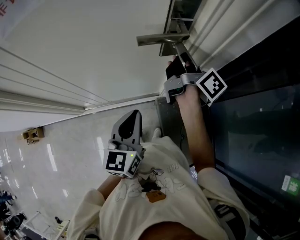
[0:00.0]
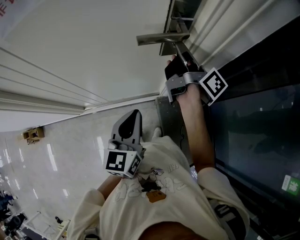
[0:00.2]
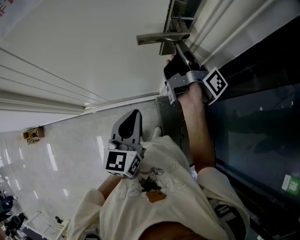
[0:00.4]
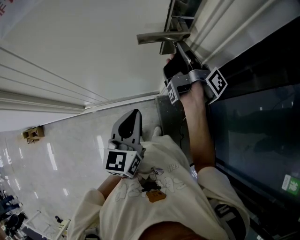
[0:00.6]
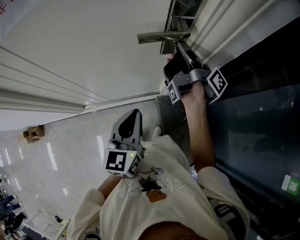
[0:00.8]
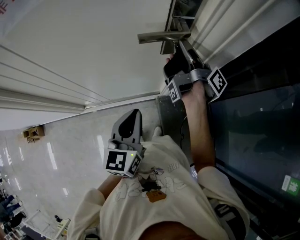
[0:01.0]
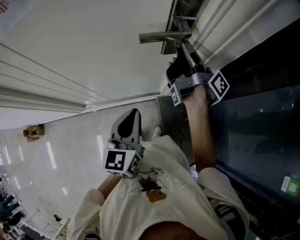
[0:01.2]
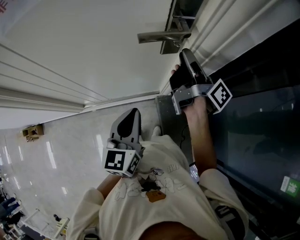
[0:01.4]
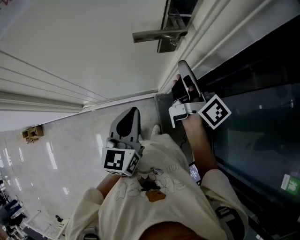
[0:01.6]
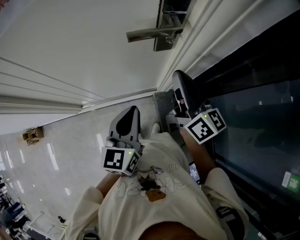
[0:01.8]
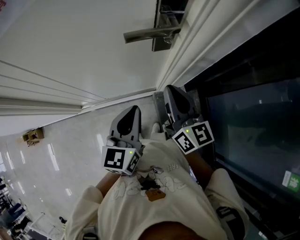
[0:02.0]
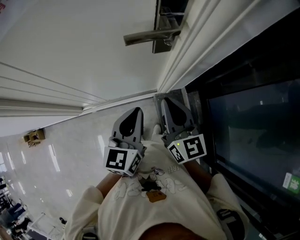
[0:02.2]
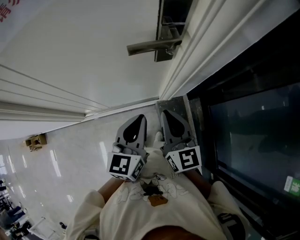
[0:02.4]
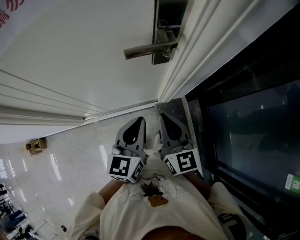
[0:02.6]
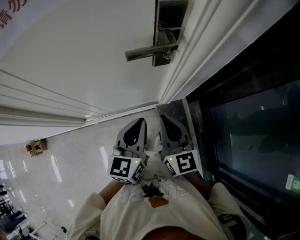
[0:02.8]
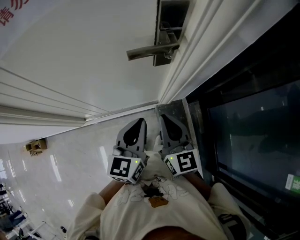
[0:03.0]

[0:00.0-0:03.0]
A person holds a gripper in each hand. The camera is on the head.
0:00.0 to 0:01.6: The right gripper heads backward, covering approximately 5 cm, and opens, then closes once more.
0:01.6 to 0:03.0: The right gripper goes some 15 cm backward and downward, and rolls counterclockwise, seen from behind, by approximately 50 degrees.

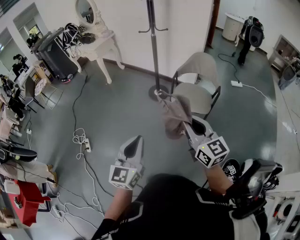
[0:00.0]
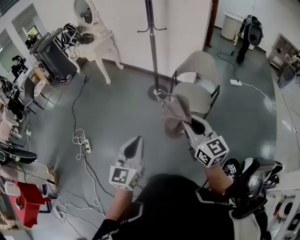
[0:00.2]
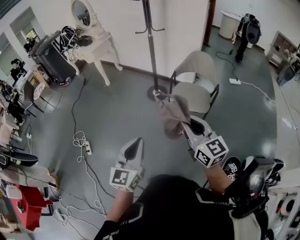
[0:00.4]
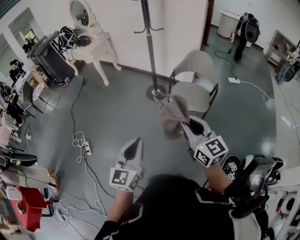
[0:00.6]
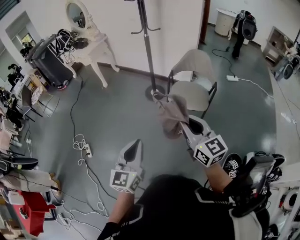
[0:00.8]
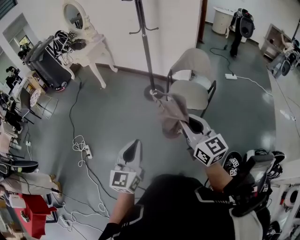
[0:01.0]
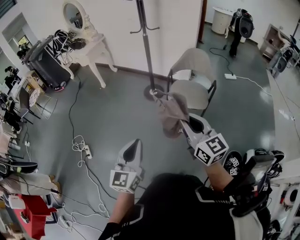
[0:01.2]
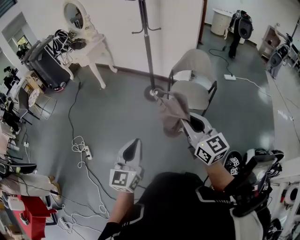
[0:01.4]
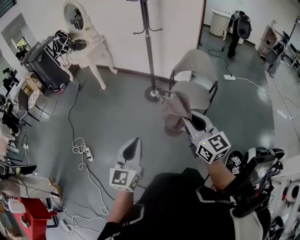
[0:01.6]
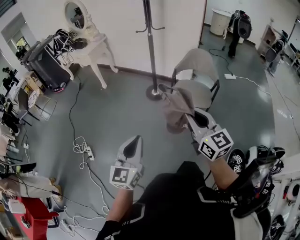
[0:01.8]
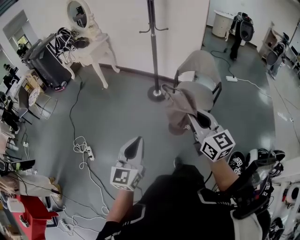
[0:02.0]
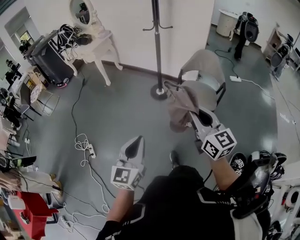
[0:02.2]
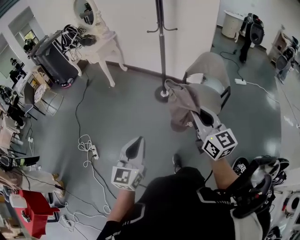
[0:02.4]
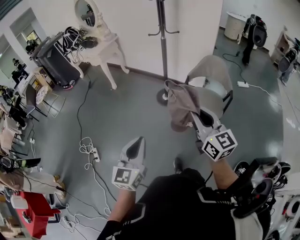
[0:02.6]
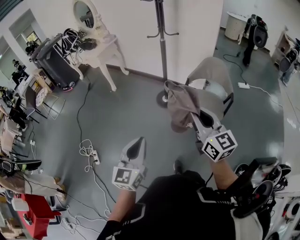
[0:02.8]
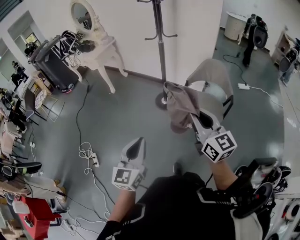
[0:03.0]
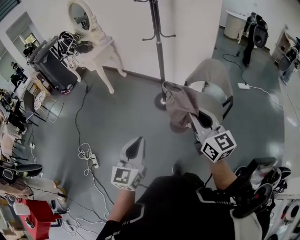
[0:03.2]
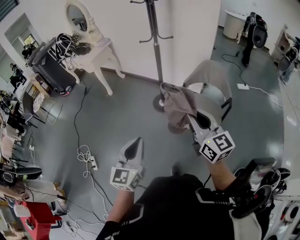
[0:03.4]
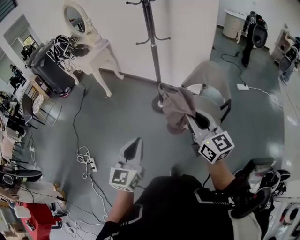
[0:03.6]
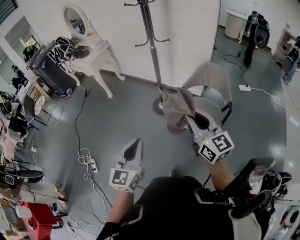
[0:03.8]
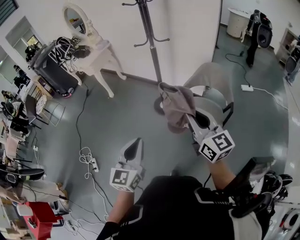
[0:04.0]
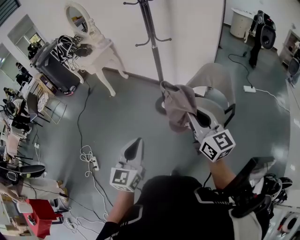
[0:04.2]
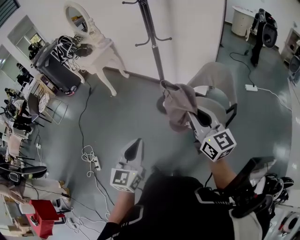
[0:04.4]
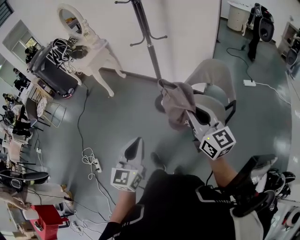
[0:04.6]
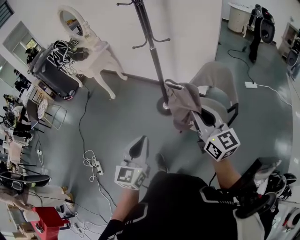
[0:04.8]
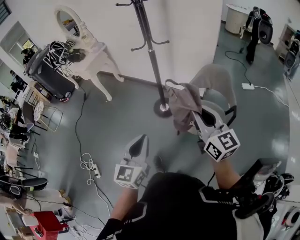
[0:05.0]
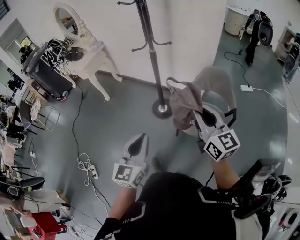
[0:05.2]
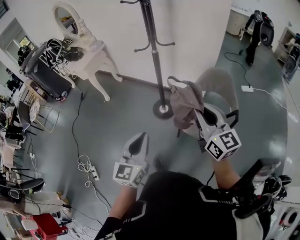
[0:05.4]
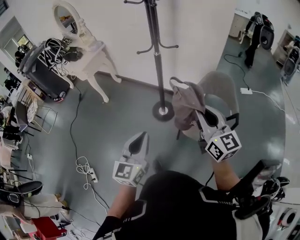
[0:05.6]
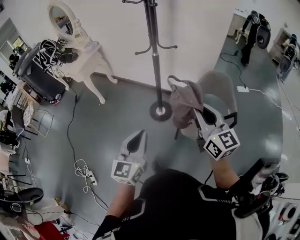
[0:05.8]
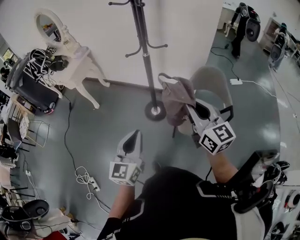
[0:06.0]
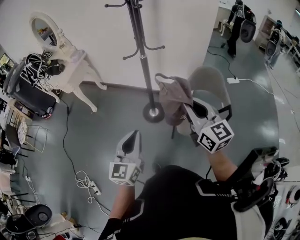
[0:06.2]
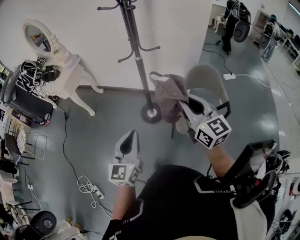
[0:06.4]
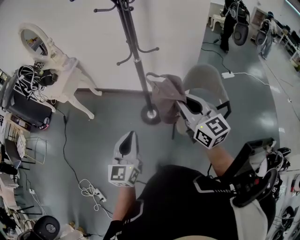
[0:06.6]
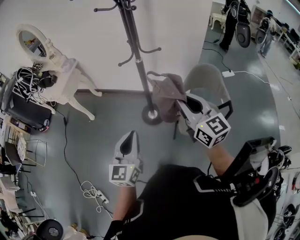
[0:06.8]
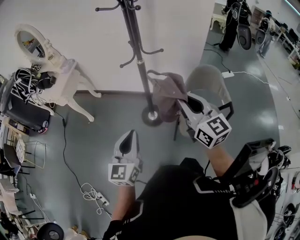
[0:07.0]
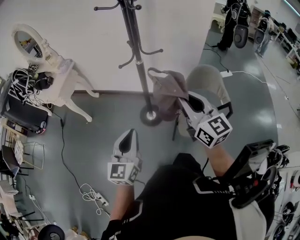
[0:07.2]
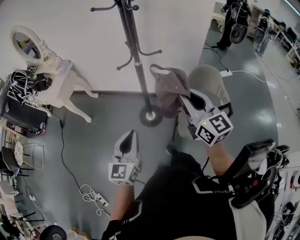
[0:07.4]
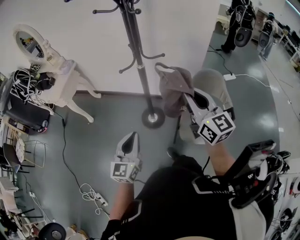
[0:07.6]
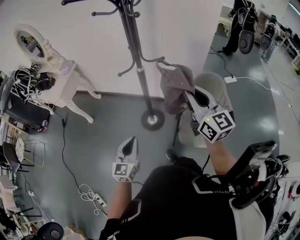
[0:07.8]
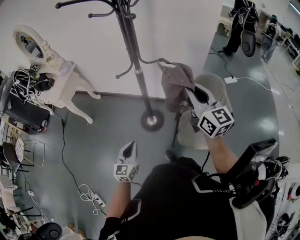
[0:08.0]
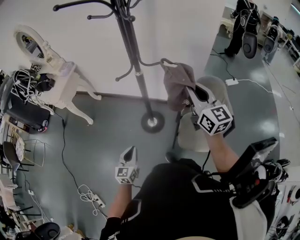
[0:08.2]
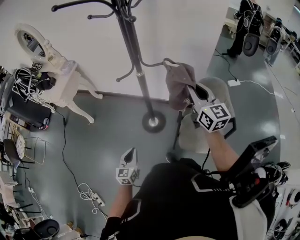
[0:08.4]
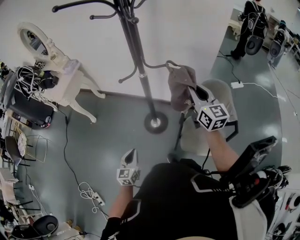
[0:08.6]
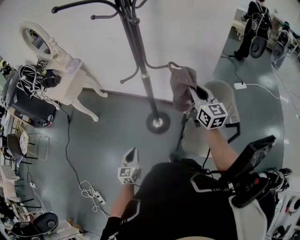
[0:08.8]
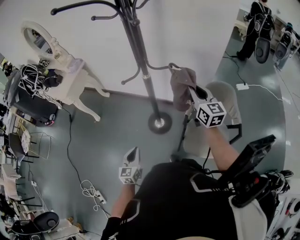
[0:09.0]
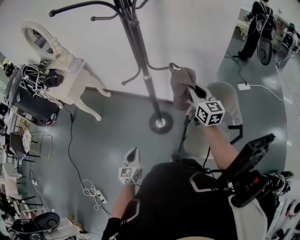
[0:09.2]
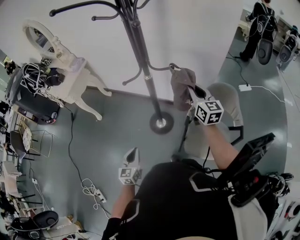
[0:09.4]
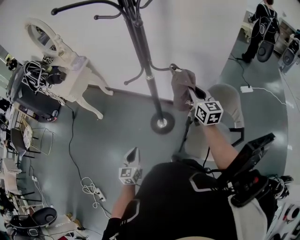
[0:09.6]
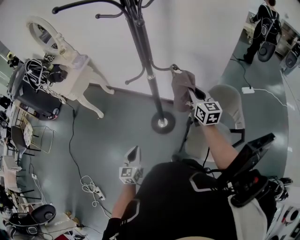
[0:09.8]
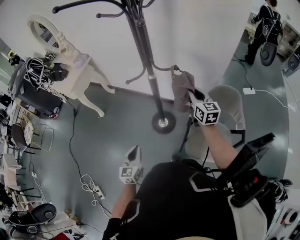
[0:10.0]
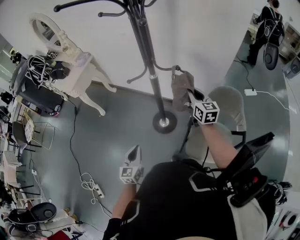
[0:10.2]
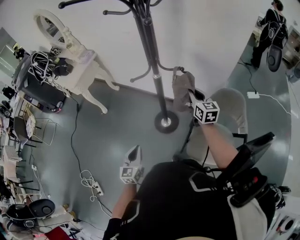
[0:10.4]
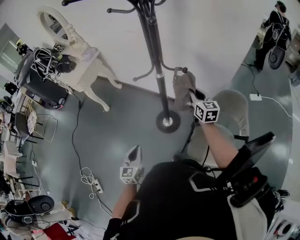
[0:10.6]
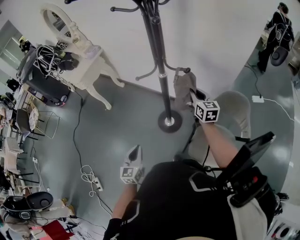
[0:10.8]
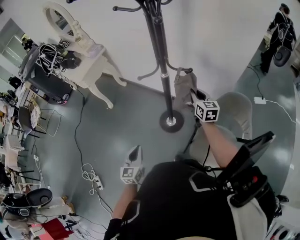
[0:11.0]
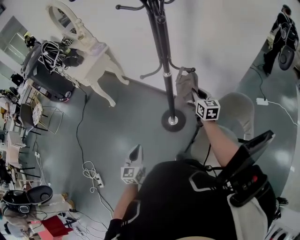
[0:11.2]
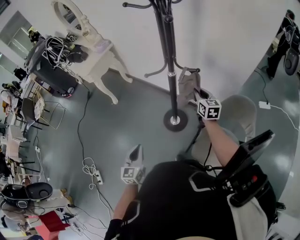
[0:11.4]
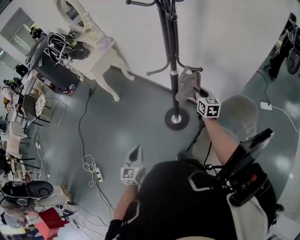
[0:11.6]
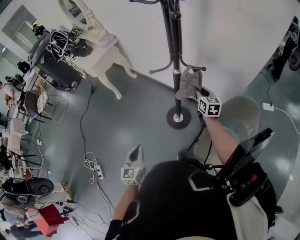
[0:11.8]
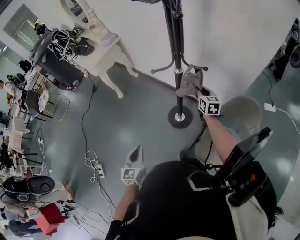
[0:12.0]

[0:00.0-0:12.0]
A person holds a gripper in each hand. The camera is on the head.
0:00.0 to 0:01.6: Both grippers move to the left, roughly 5 cm.
0:01.6 to 0:03.0: The grippers both shift forward by approximately 15 cm.
0:03.0 to 0:04.4: Both grippers travel together forward and to the right, approximately 15 cm.
0:04.4 to 0:06.0: The left gripper moves forward, roughly 20 cm, while the right gripper travels forward and to the left by some 15 cm.
0:06.0 to 0:07.6: Both grippers travel together forward, approximately 15 cm.
0:07.6 to 0:09.0: The left gripper heads downward, covering approximately 20 cm; the right gripper goes some 20 cm forward and downward.
0:09.0 to 0:10.4: The right gripper moves downward and forward, some 10 cm.
0:10.4 to 0:12.0: The right gripper moves downward and forward, approximately 10 cm. Meanwhile the left gripper changes place by about 5 cm.

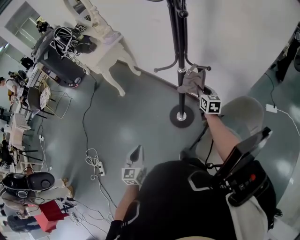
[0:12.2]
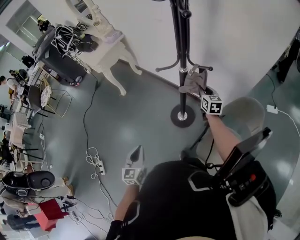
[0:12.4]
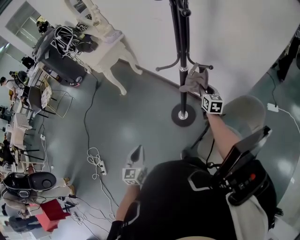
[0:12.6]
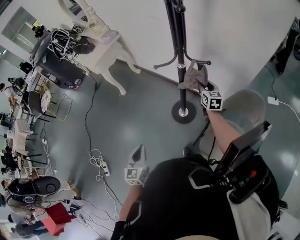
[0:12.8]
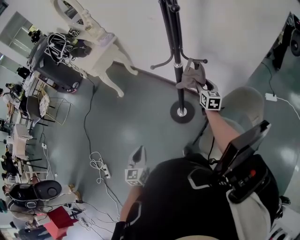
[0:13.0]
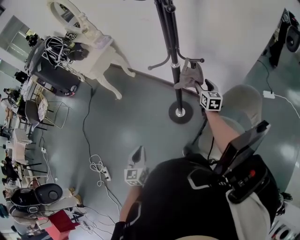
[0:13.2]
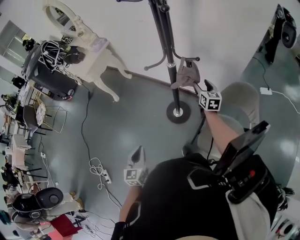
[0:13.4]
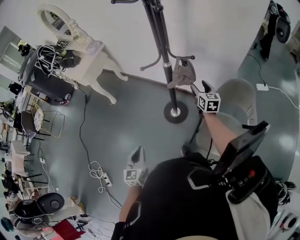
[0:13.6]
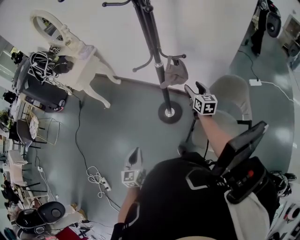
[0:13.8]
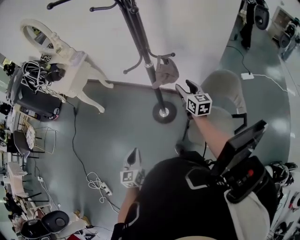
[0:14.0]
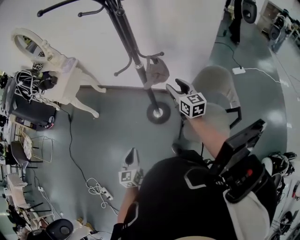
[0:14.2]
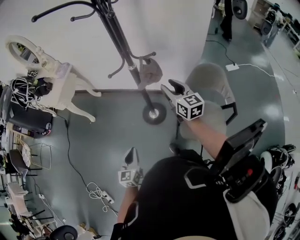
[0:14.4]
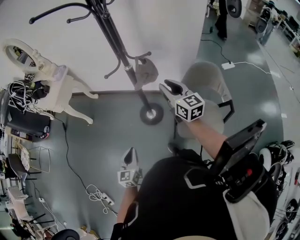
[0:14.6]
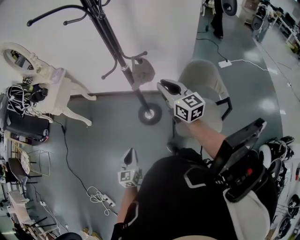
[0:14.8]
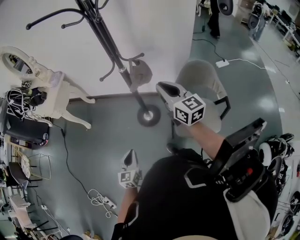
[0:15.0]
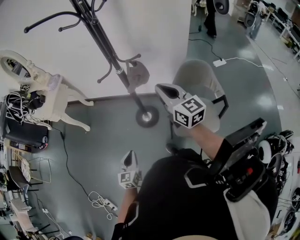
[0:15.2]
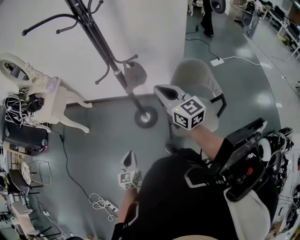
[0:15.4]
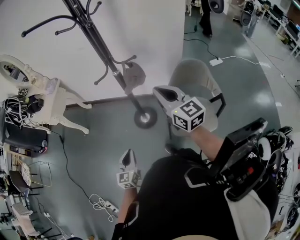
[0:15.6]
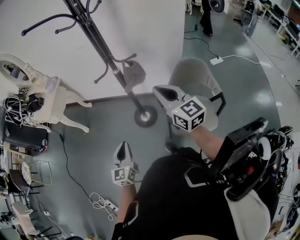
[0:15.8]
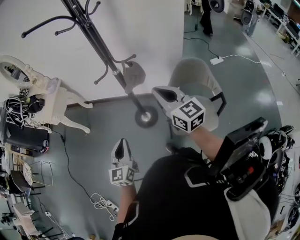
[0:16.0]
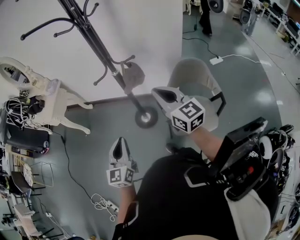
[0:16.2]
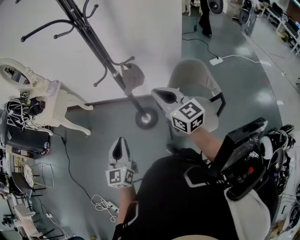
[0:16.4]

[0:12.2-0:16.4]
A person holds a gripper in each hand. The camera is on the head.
0:12.2 to 0:13.6: The right gripper goes some 5 cm backward, and opens up.
0:13.6 to 0:15.0: The right gripper is displaced upward and backward by roughly 25 cm, and closes its fingers; the left gripper changes place by some 5 cm.
0:15.0 to 0:16.4: The left gripper heads upward, covering some 20 cm, while the right gripper goes approximately 5 cm backward.

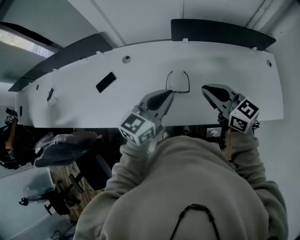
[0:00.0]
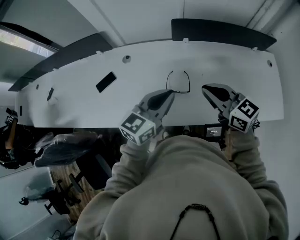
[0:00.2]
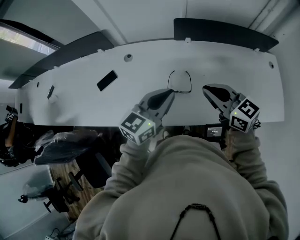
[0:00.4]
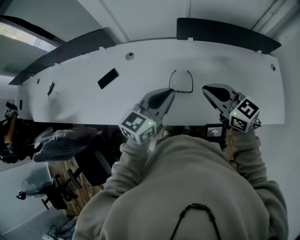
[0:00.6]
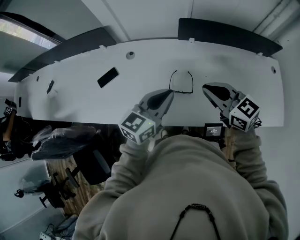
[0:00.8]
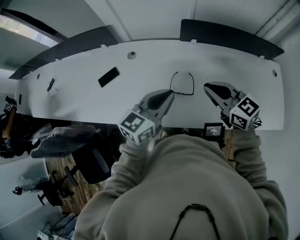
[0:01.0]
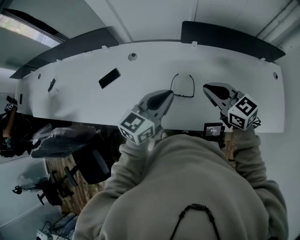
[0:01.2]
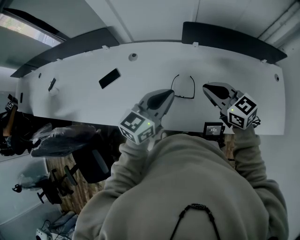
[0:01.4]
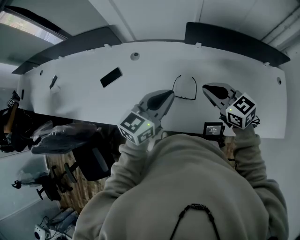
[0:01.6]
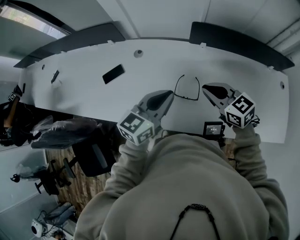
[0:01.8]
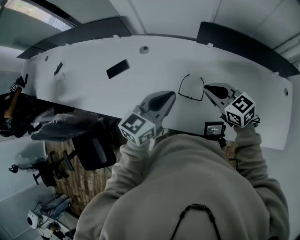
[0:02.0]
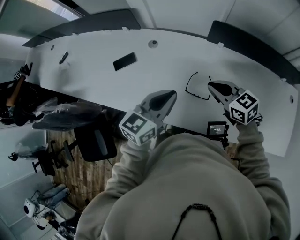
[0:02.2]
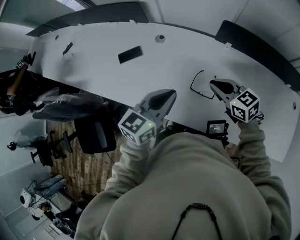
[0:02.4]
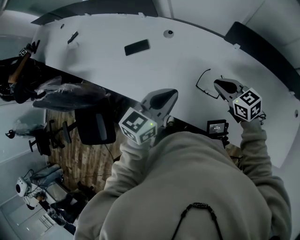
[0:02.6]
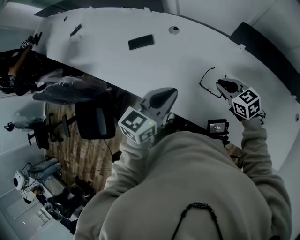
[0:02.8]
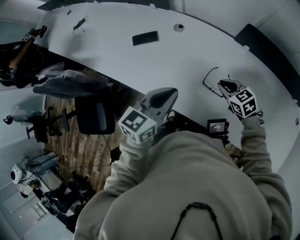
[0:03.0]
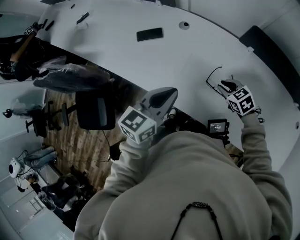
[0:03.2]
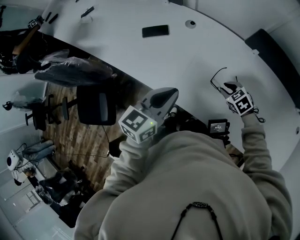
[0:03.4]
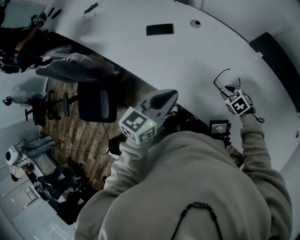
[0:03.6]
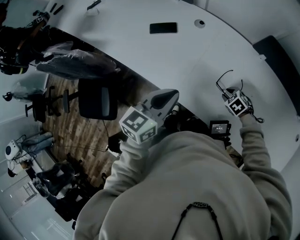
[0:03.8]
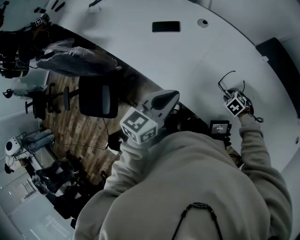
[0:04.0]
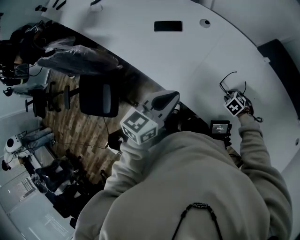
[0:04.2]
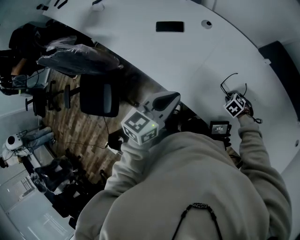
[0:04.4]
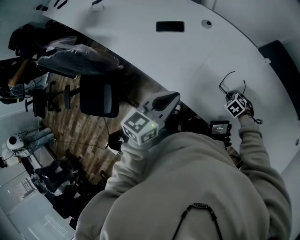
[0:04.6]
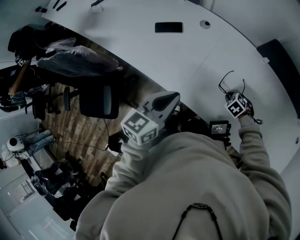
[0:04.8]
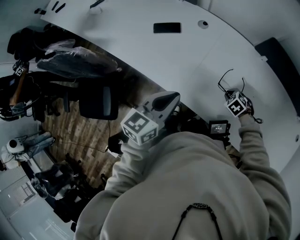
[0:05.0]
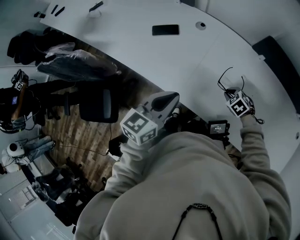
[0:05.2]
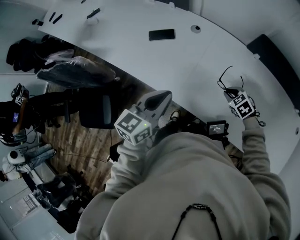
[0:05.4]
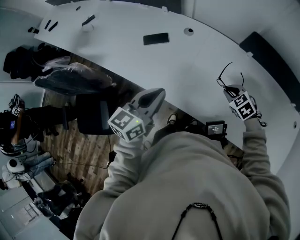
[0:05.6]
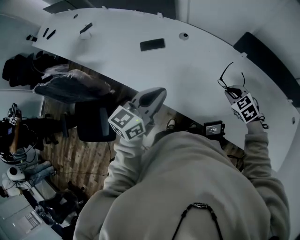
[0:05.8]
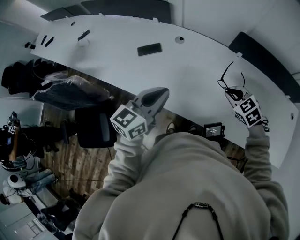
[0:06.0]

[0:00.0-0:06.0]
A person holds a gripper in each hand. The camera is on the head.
0:00.0 to 0:01.6: The right gripper travels forward and downward by roughly 10 cm.
0:01.6 to 0:03.0: The right gripper travels downward by roughly 15 cm, and turns by some 30 degrees. The left gripper moves to the left, approximately 10 cm, and swivels approximately 20 degrees.
0:03.0 to 0:04.4: The right gripper travels downward by approximately 15 cm, and tips its fingers downward by roughly 30 degrees. The left gripper moves roughly 5 cm.
0:04.4 to 0:06.0: The left gripper heads upward, covering about 10 cm. Meanwhile the right gripper shifts roughly 25 cm upward, and turns by some 30 degrees.
